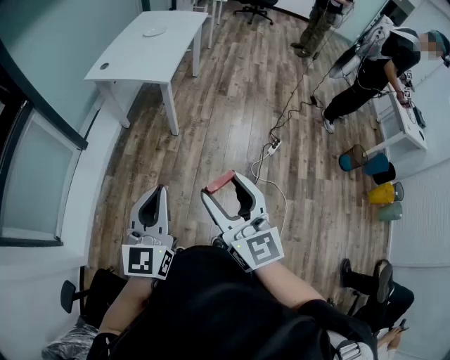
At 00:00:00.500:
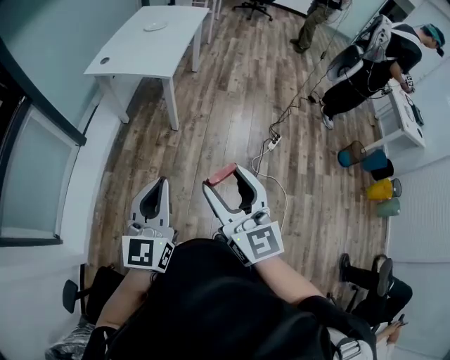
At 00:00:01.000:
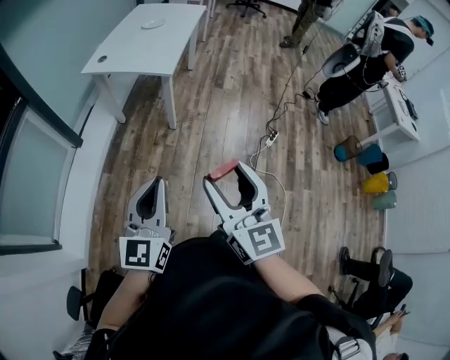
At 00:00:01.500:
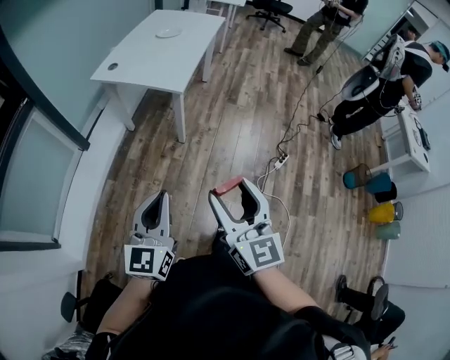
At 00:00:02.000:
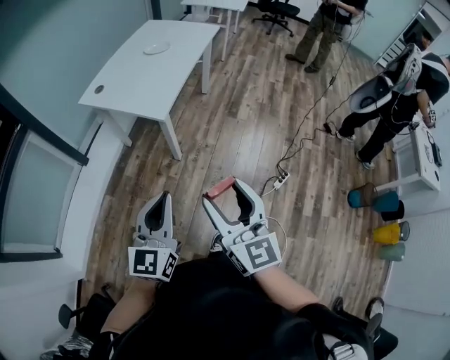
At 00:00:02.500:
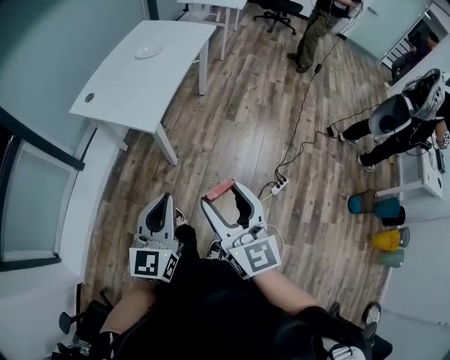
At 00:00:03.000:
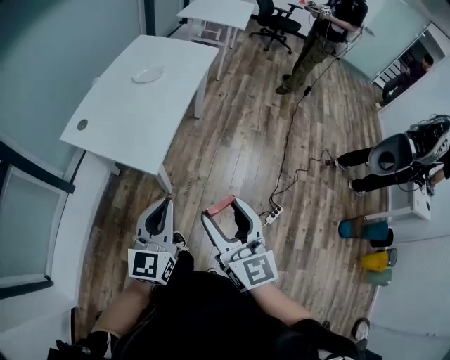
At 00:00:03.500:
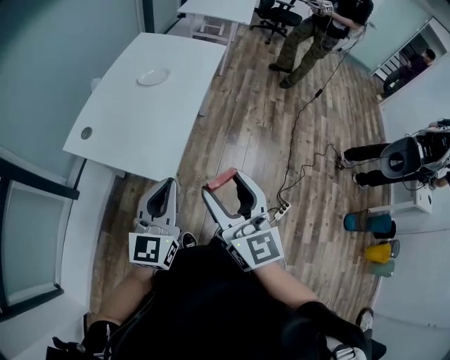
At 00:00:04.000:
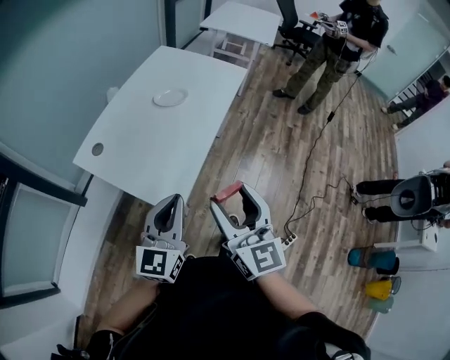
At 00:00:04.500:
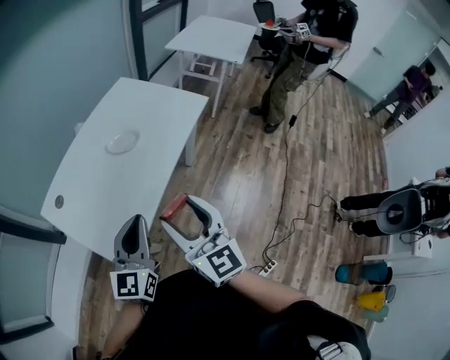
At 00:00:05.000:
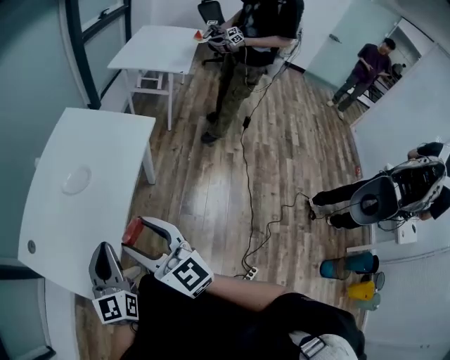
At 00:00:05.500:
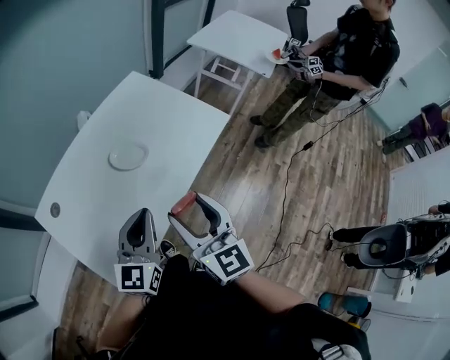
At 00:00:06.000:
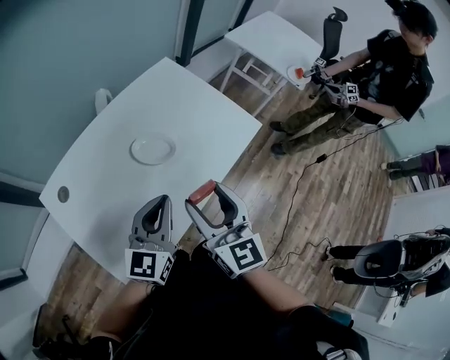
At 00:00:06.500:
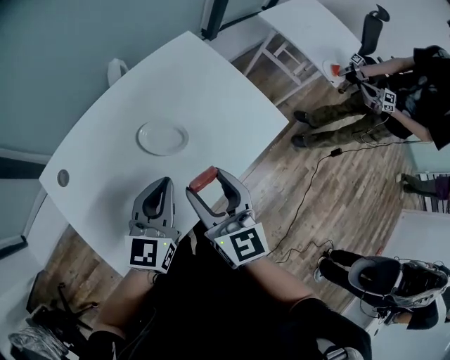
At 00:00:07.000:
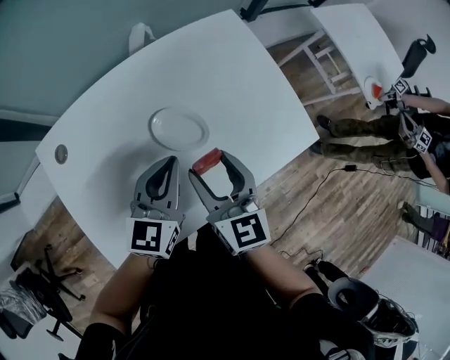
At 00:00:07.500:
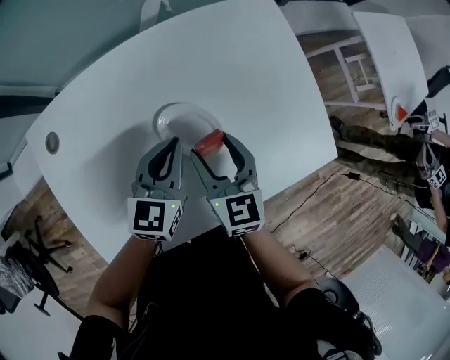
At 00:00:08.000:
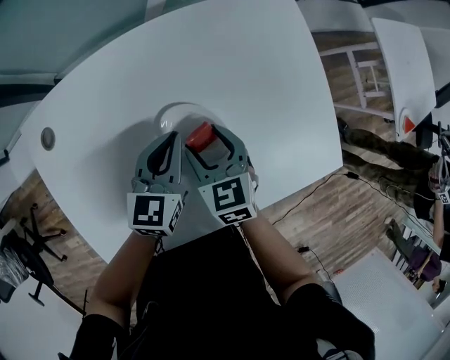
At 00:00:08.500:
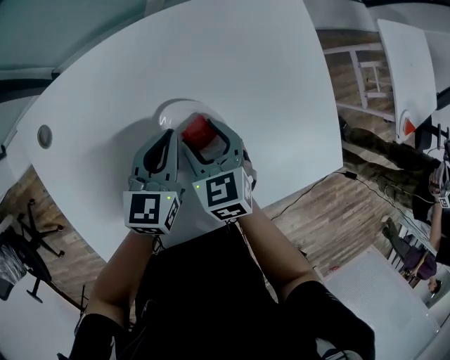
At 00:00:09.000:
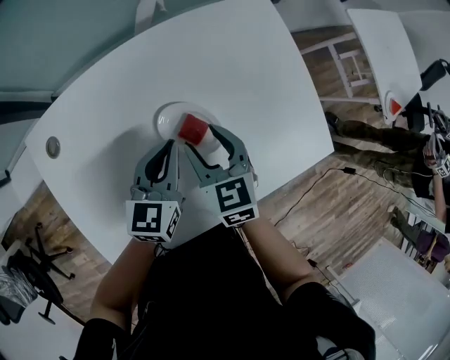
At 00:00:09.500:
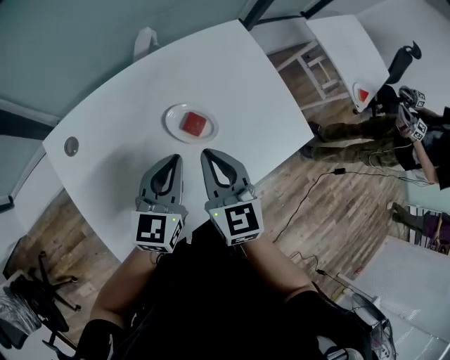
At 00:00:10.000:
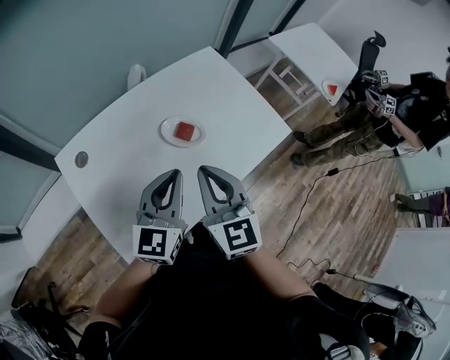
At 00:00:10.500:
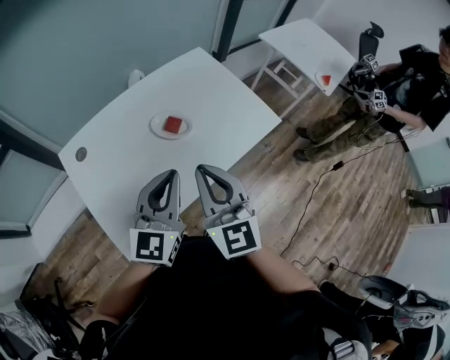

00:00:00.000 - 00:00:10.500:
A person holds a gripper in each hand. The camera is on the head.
00:00:00.000 - 00:00:02.000: The grippers both shift forward by about 20 cm.
00:00:02.000 - 00:00:04.000: The two grippers go some 40 cm forward.
00:00:04.000 - 00:00:06.500: Both grippers move forward, roughly 40 cm. The left gripper changes its angle by roughly 30 degrees, while the right gripper turns by approximately 30 degrees.
00:00:06.500 - 00:00:08.500: Both grippers move downward and forward, about 25 cm. The left gripper rotates about 30 degrees. The right gripper angles its fingers downward, by approximately 30 degrees.
00:00:08.500 - 00:00:10.500: The grippers both shift upward and backward by about 35 cm. The right gripper angles its fingers upward, by some 40 degrees, and closes its fingers. Meanwhile the left gripper rotates roughly 40 degrees.

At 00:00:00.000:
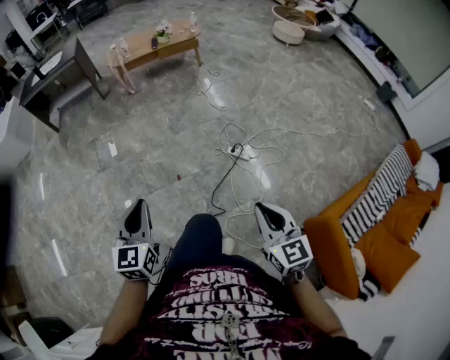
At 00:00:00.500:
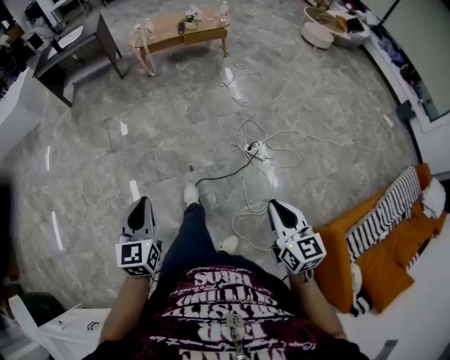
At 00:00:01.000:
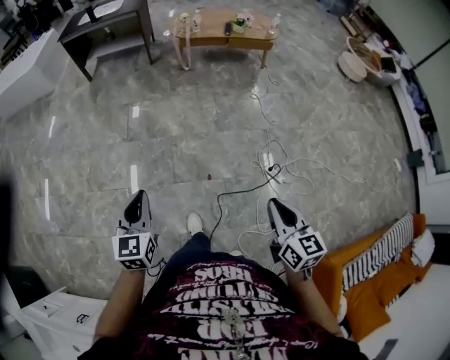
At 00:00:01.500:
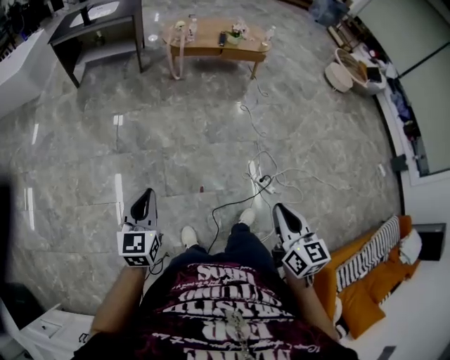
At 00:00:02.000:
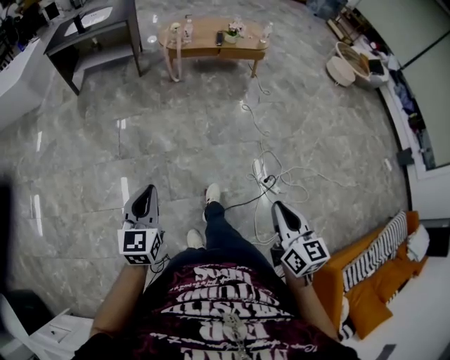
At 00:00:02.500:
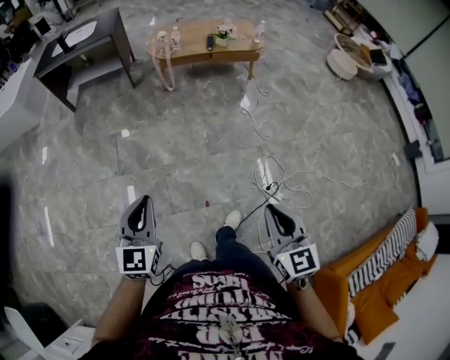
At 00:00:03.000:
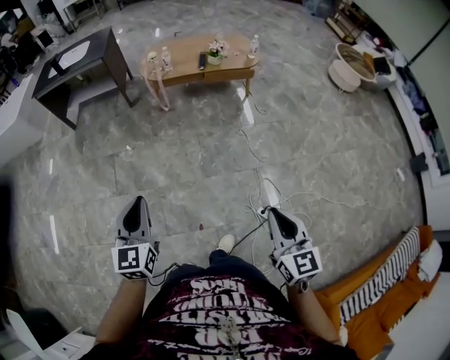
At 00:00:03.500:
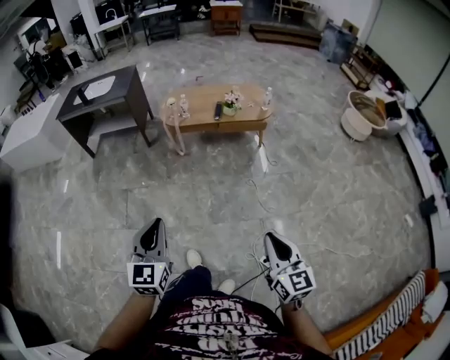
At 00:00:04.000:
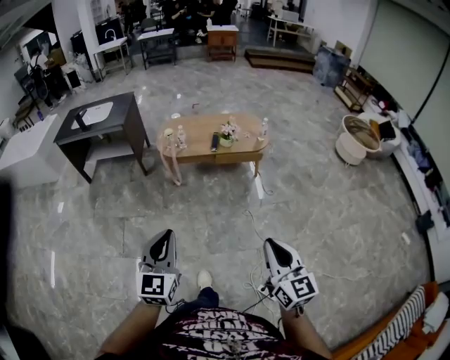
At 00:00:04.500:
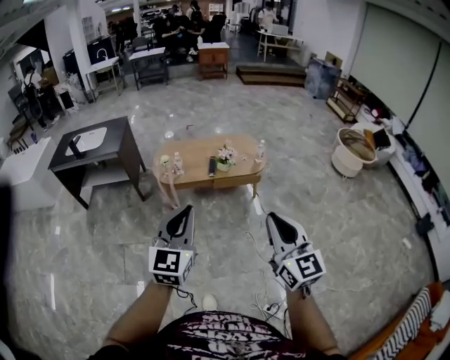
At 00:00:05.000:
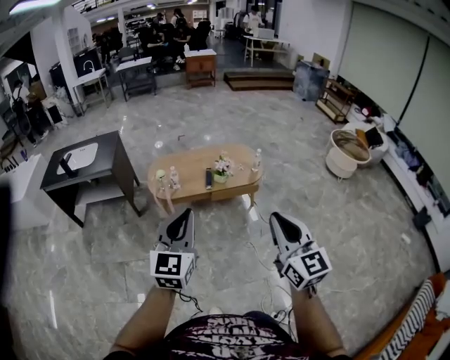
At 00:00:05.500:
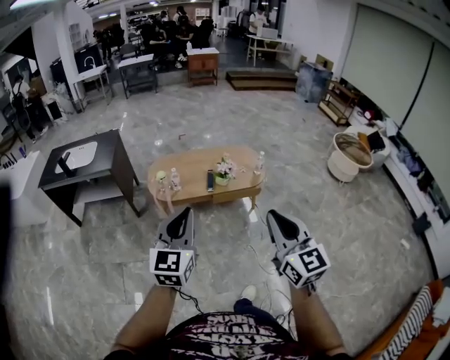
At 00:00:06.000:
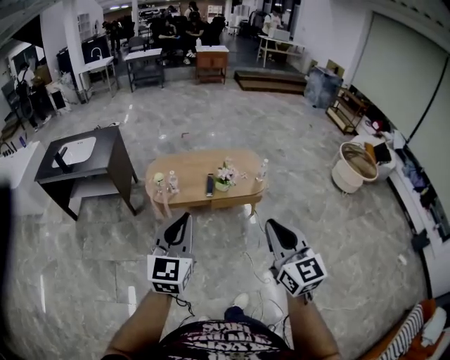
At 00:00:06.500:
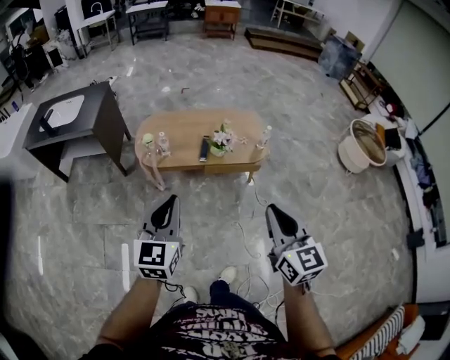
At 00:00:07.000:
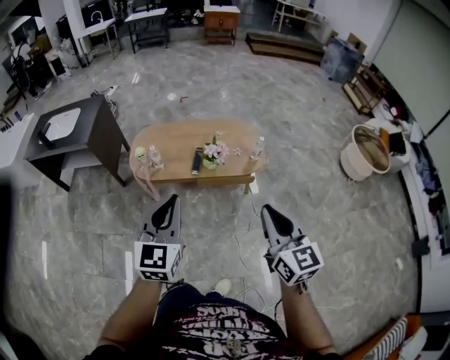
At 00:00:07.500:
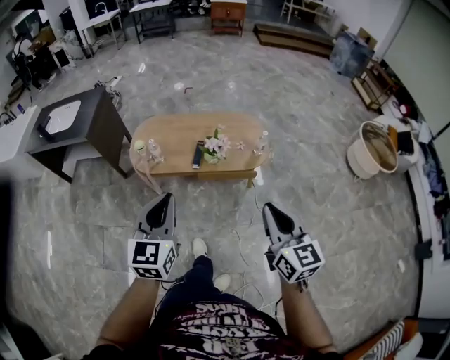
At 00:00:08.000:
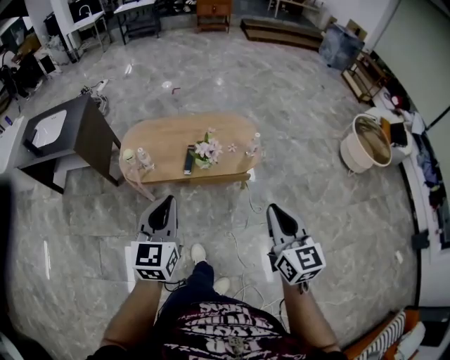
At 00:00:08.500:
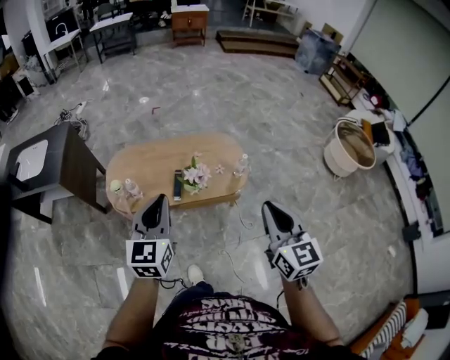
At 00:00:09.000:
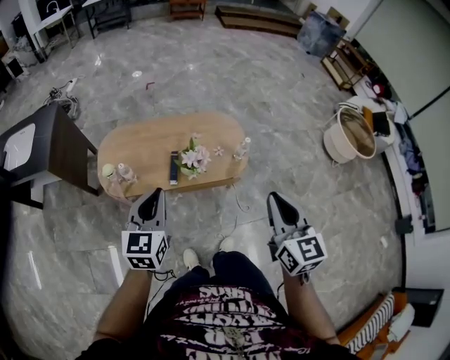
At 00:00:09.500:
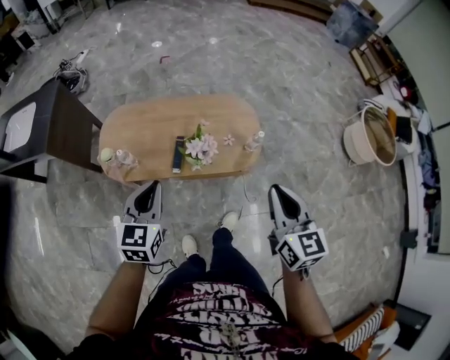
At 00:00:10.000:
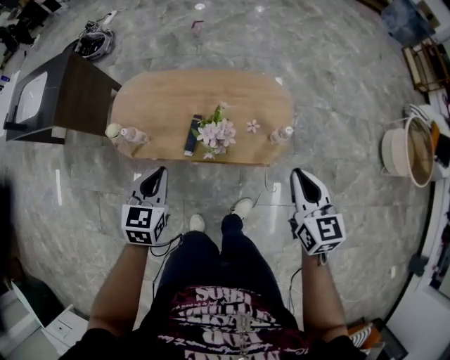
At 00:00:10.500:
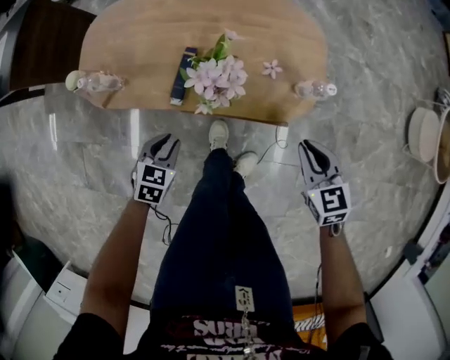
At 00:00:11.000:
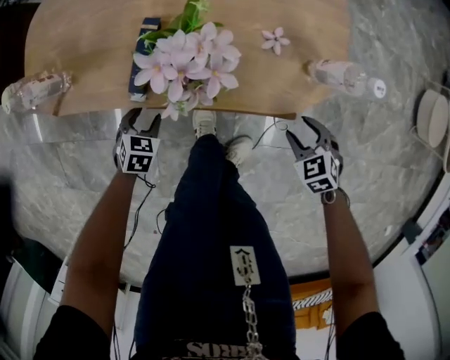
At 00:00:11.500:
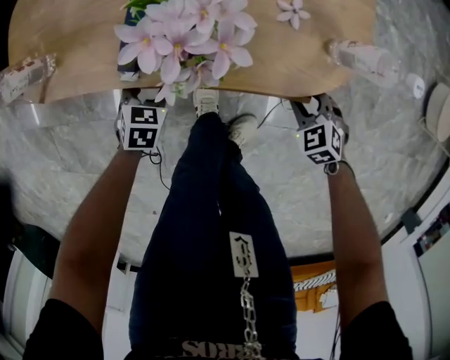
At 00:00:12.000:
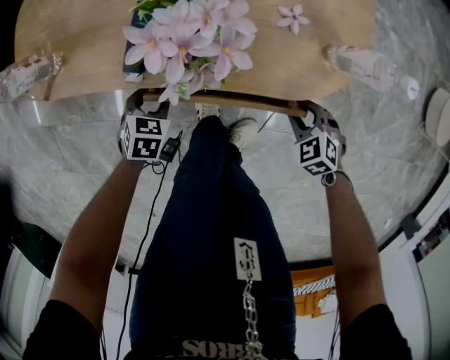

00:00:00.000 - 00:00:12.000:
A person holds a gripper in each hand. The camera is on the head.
00:00:00.000 - 00:00:02.000: The grippers both shift forward and to the left by about 35 cm.
00:00:02.000 - 00:00:04.000: The left gripper heads forward, to the right and upward, covering about 40 cm. Meanwhile the right gripper travels forward and to the right by some 40 cm.
00:00:04.000 - 00:00:06.000: The grippers both shift forward by roughly 30 cm.
00:00:06.000 - 00:00:08.000: The two grippers go about 25 cm forward, to the right and downward.
00:00:08.000 - 00:00:10.000: Both grippers move forward and downward, some 35 cm. The left gripper changes its angle by about 20 degrees.
00:00:10.000 - 00:00:12.000: Both grippers move downward, roughly 50 cm. The left gripper points its fingers about 30 degrees further downward, and opens. Meanwhile the right gripper tips its fingers downward by roughly 40 degrees, and opens up.

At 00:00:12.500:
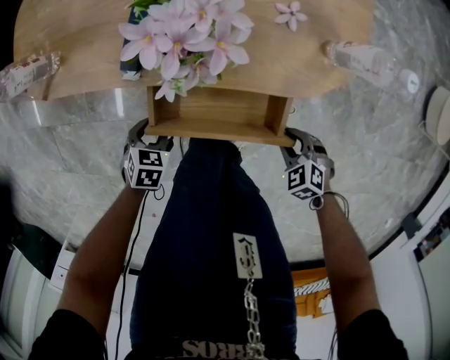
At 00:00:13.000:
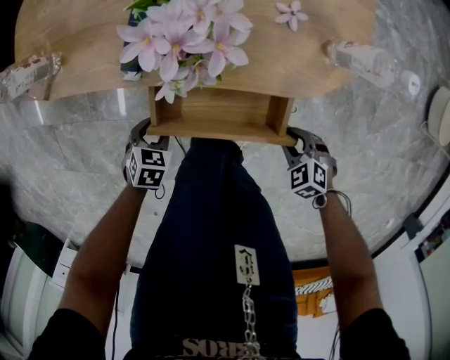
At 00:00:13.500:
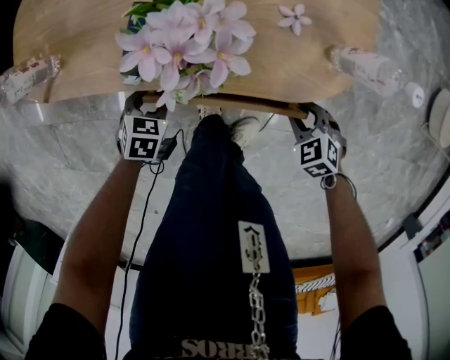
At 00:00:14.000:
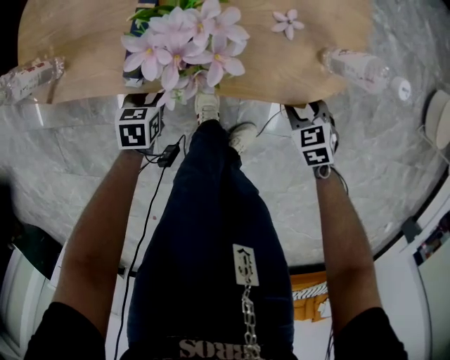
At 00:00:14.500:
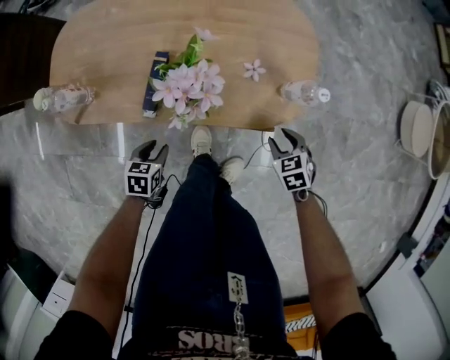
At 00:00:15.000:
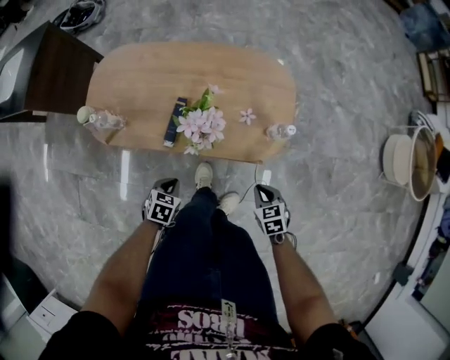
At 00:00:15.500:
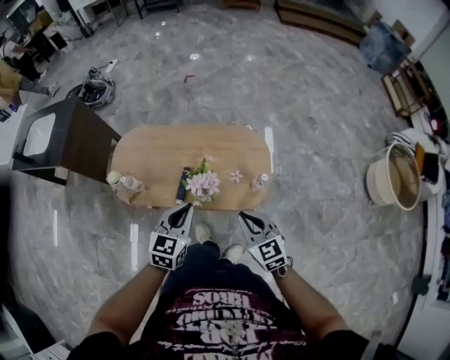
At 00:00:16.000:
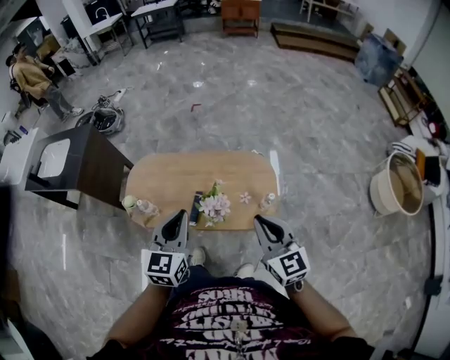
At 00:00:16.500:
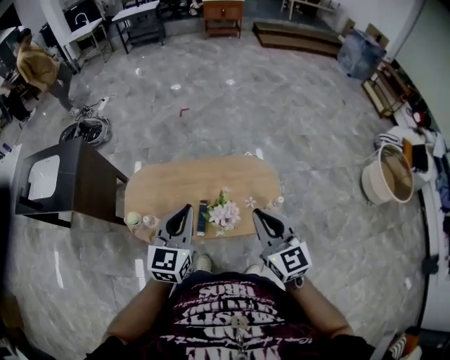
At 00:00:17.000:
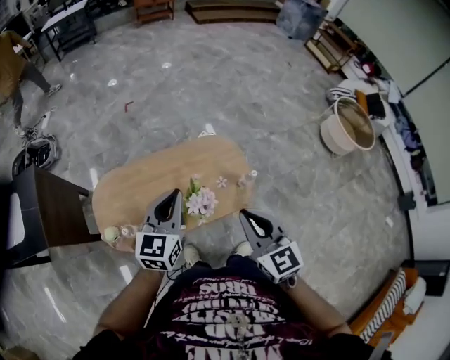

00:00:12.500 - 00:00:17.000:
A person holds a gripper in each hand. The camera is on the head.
00:00:12.500 - 00:00:14.500: The left gripper is displaced upward by approximately 10 cm; the right gripper changes place by approximately 15 cm, and turns by about 30 degrees.
00:00:14.500 - 00:00:17.000: Both grippers move upward, approximately 60 cm. The right gripper points its fingers about 50 degrees further upward, and closes up. Meanwhile the left gripper tilts its fingers approximately 50 degrees upward, and closes its fingers.
